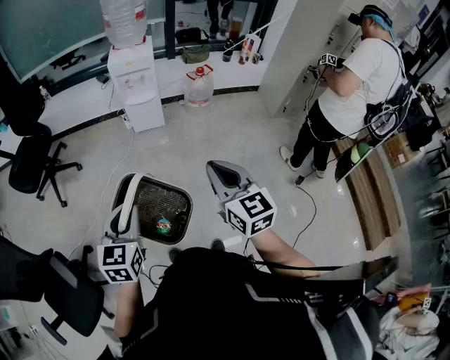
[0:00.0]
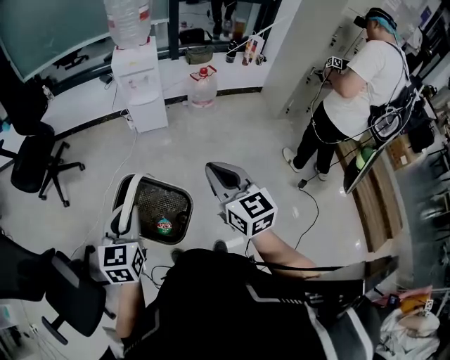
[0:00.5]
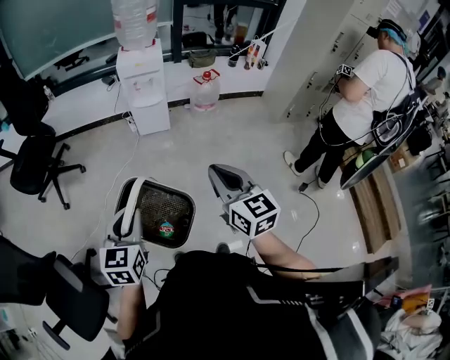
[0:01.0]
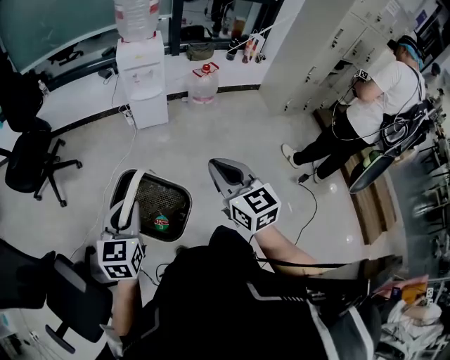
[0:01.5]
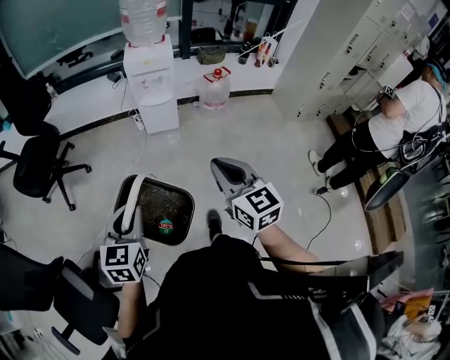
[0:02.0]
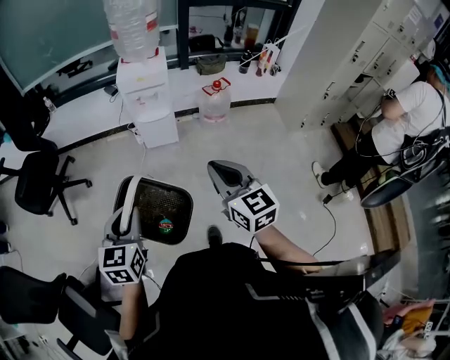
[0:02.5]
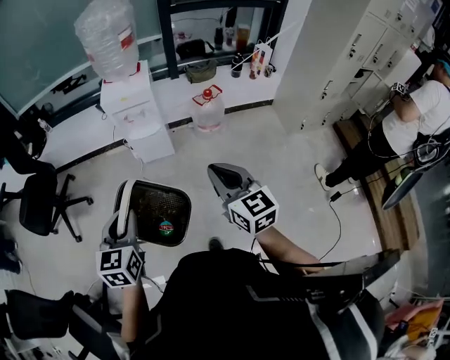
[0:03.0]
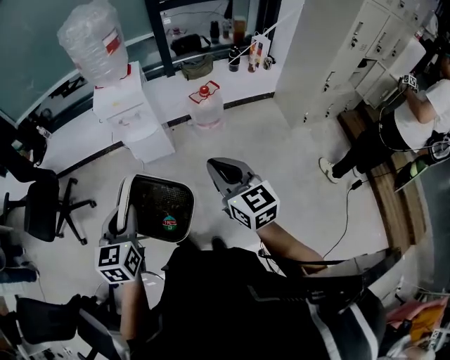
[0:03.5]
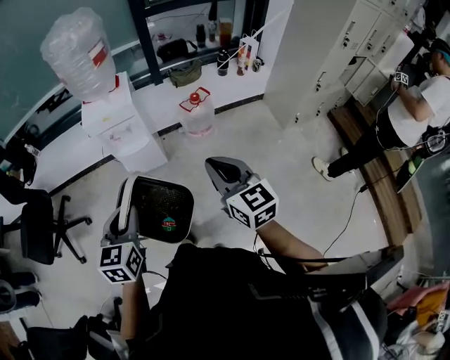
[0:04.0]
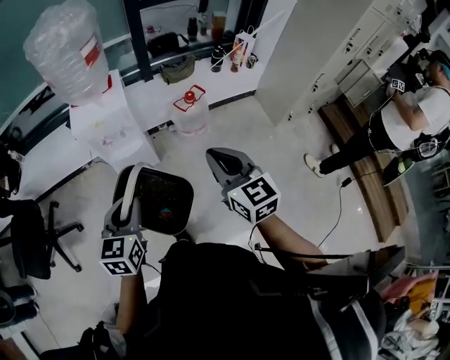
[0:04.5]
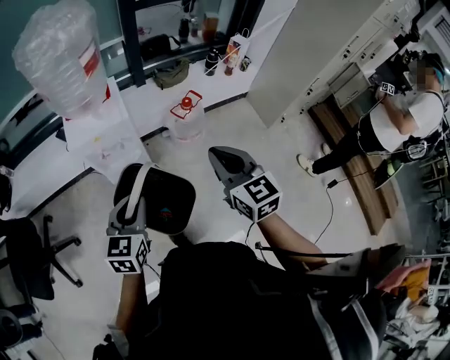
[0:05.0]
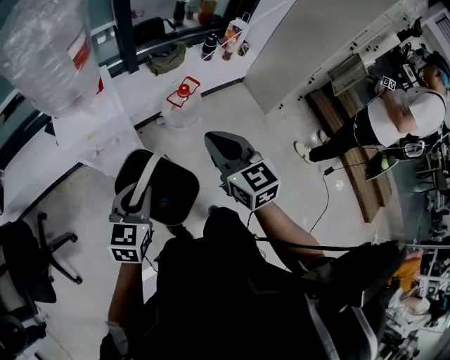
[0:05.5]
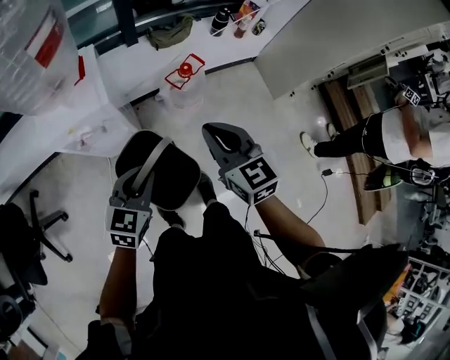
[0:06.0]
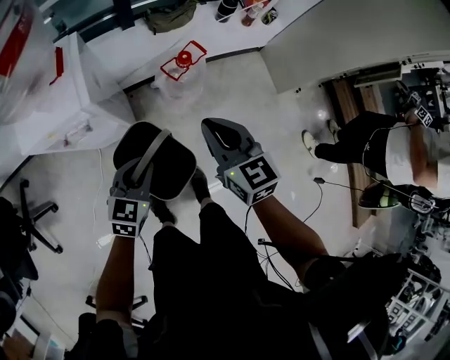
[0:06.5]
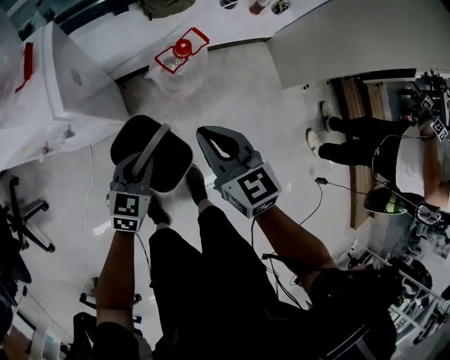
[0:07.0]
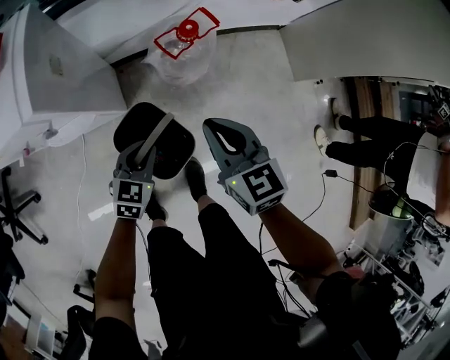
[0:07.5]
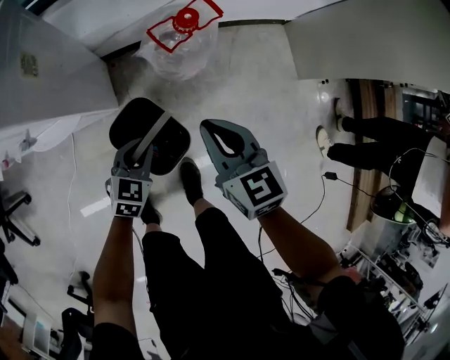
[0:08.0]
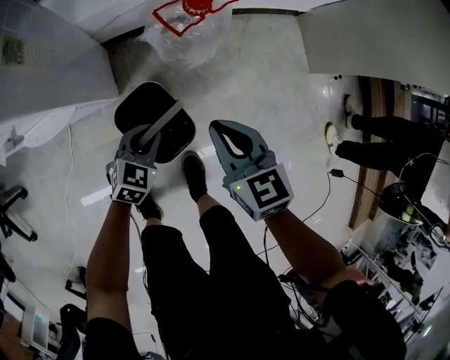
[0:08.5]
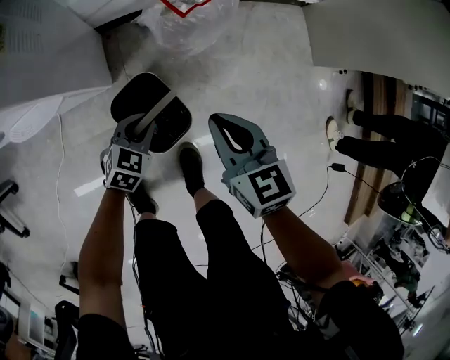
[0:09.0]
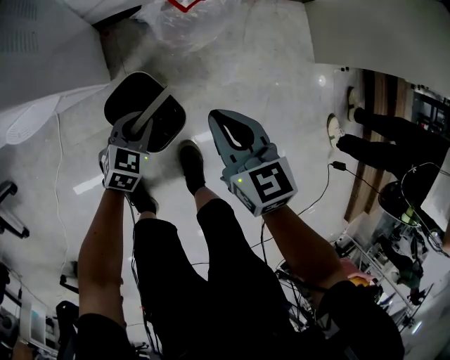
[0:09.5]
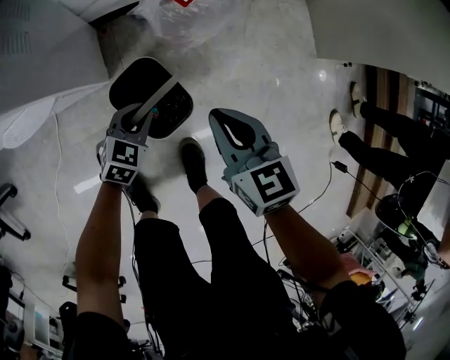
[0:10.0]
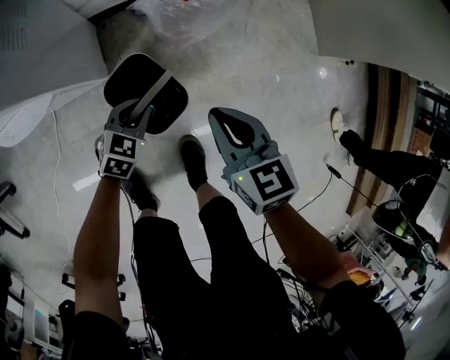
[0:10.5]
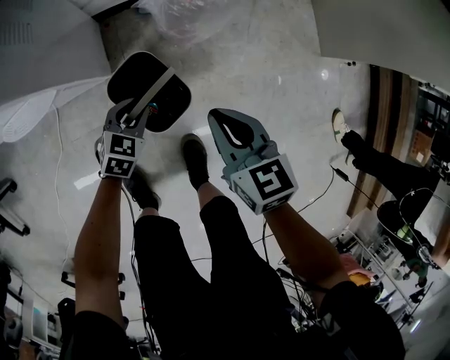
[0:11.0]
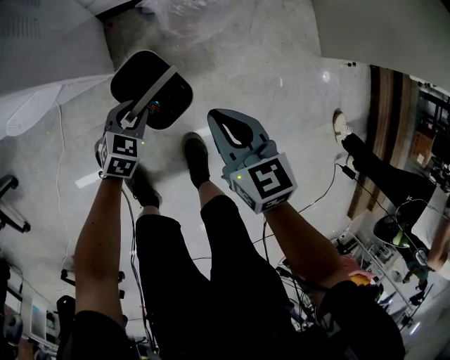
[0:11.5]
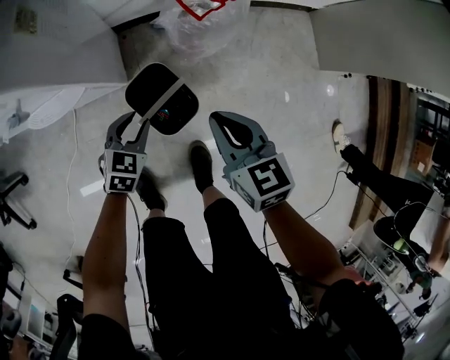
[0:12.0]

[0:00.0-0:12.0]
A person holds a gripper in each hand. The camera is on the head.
0:00.0 to 0:02.0: The right gripper goes approximately 10 cm forward and to the left; the left gripper is displaced to the left and forward by roughly 10 cm.
0:02.0 to 0:04.0: The grippers both shift forward and to the right by approximately 35 cm.
0:04.0 to 0:06.0: The left gripper is displaced forward and downward by roughly 35 cm, and swivels about 30 degrees. Meanwhile the right gripper shifts some 30 cm forward.
0:06.0 to 0:08.0: Both grippers move downward, about 35 cm.
0:08.0 to 0:10.0: The two grippers go roughly 15 cm downward.
0:10.0 to 0:12.0: The left gripper shifts roughly 10 cm upward and to the left. Meanwhile the right gripper travels upward by some 5 cm.

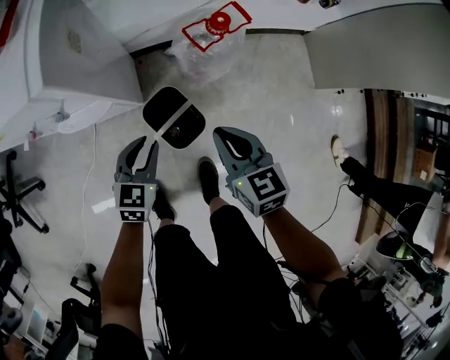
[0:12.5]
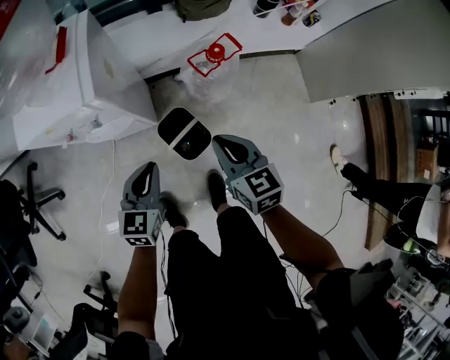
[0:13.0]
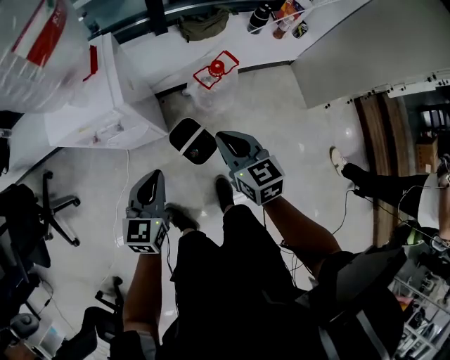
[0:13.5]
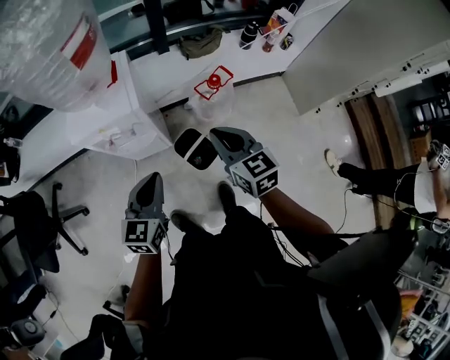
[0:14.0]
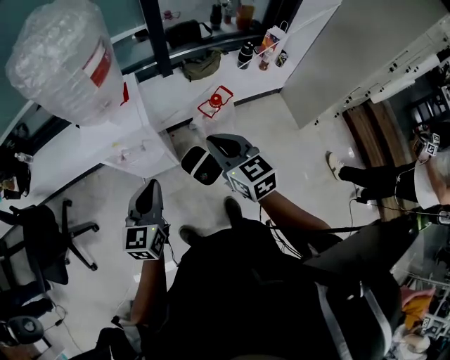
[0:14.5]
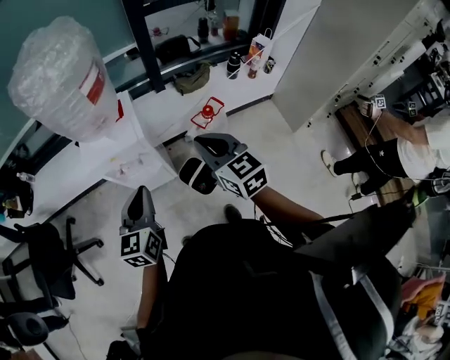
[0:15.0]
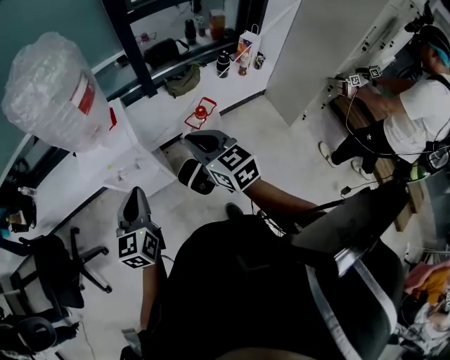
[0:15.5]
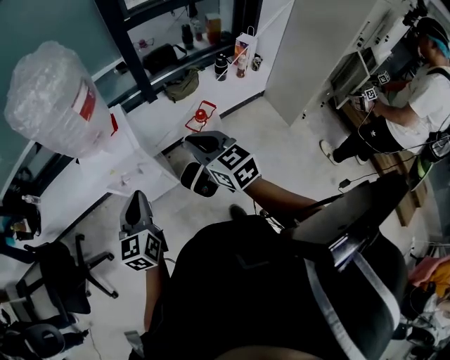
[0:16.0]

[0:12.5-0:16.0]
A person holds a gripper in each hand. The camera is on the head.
0:12.5 to 0:14.5: Both grippers move upward, some 40 cm. The left gripper swivels roughly 20 degrees, and closes.
0:14.5 to 0:16.0: The grippers stay close to where they were, moving slightly.

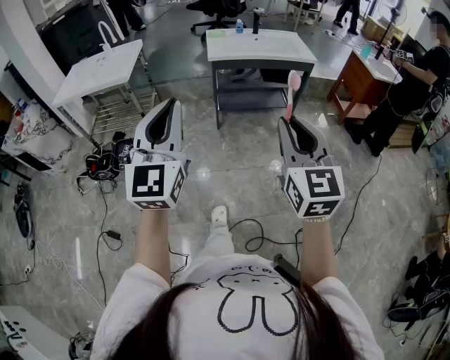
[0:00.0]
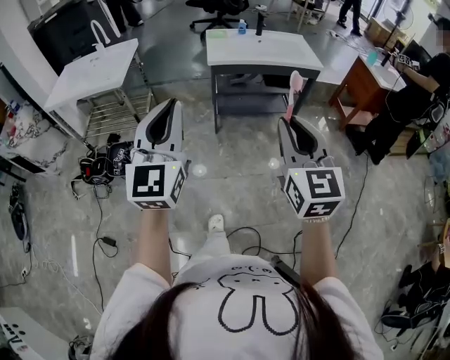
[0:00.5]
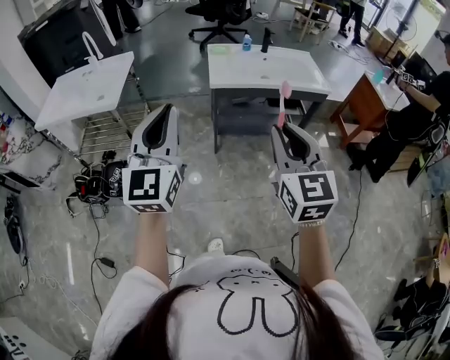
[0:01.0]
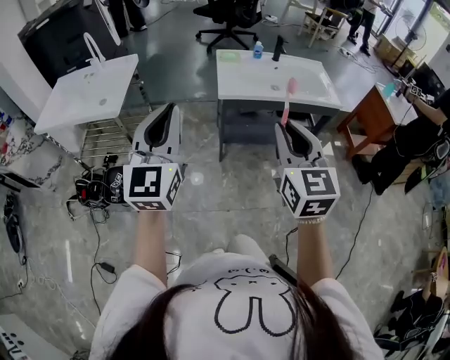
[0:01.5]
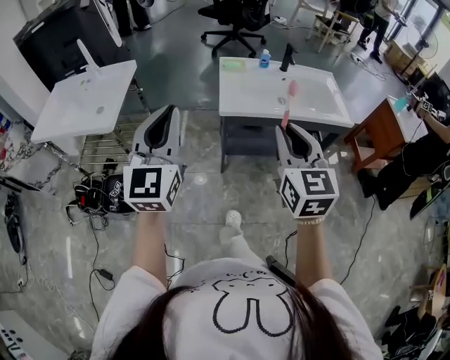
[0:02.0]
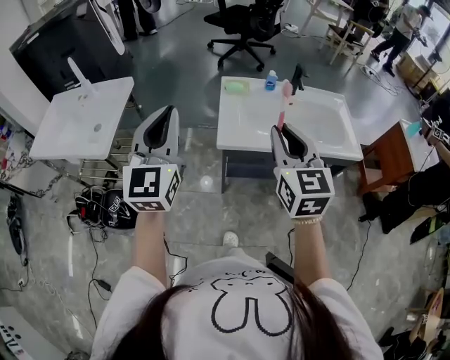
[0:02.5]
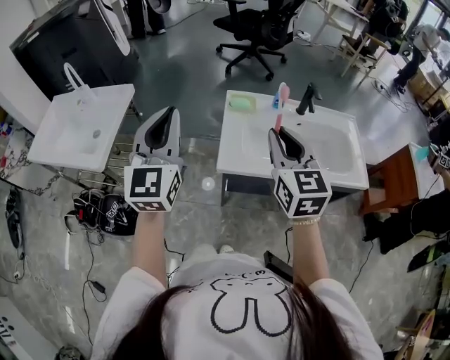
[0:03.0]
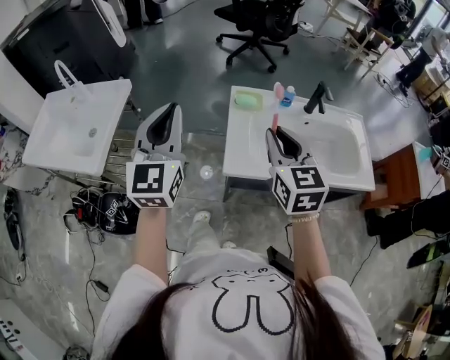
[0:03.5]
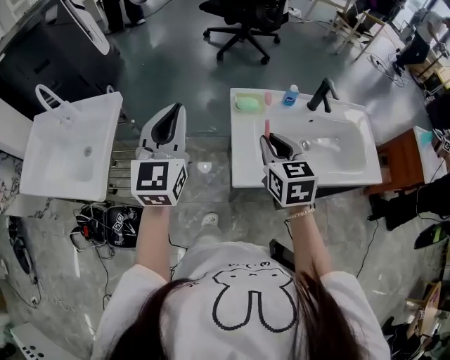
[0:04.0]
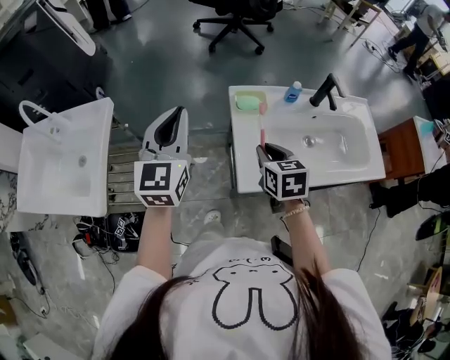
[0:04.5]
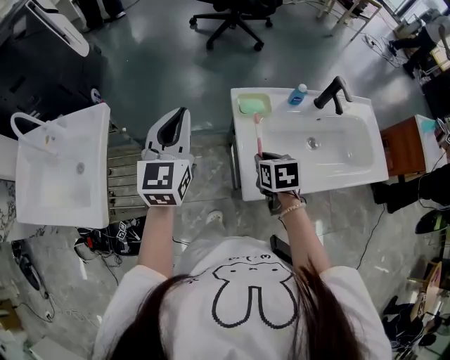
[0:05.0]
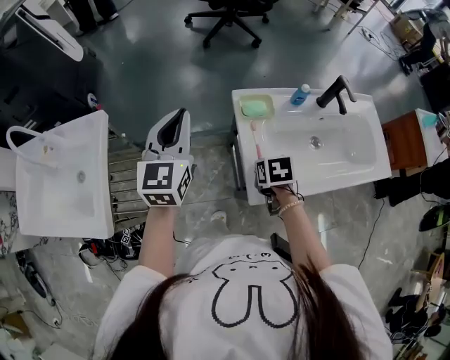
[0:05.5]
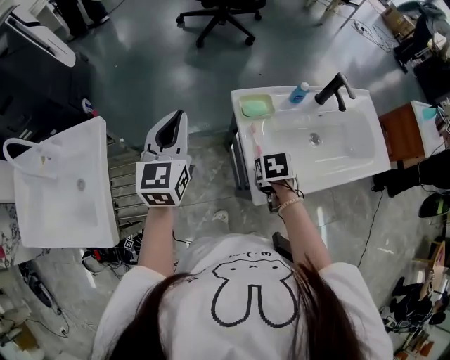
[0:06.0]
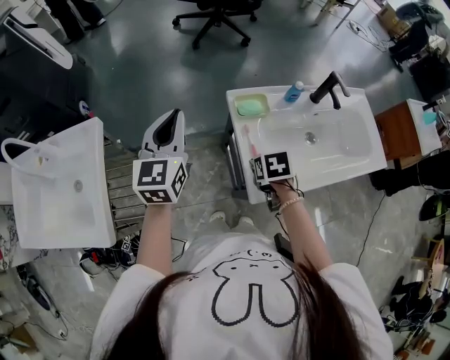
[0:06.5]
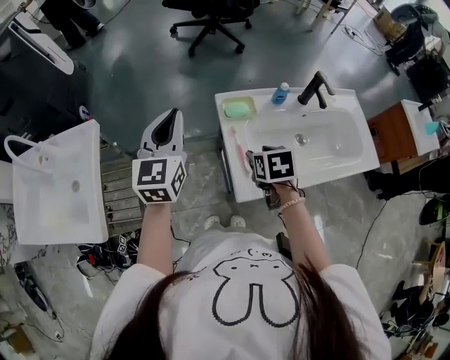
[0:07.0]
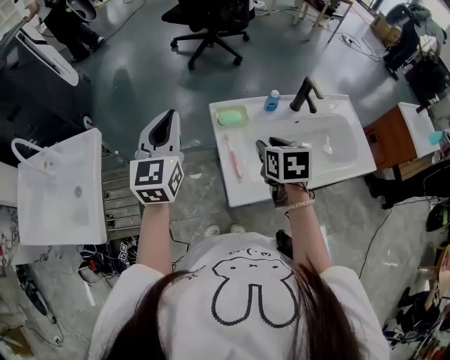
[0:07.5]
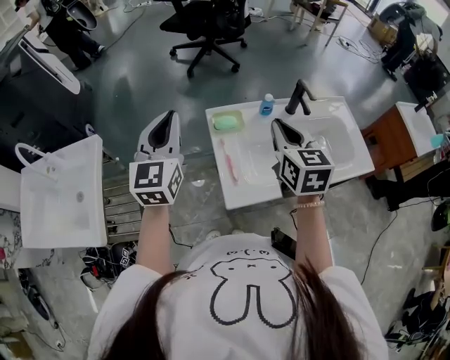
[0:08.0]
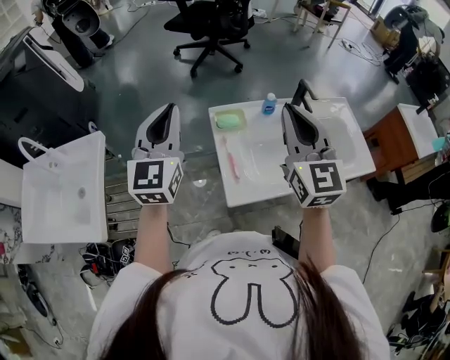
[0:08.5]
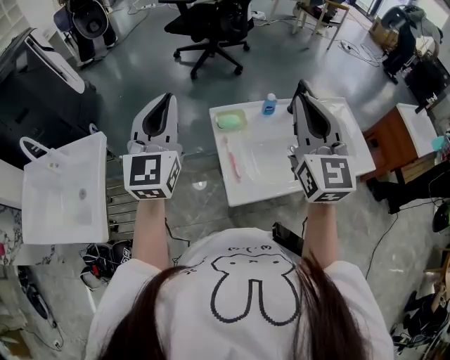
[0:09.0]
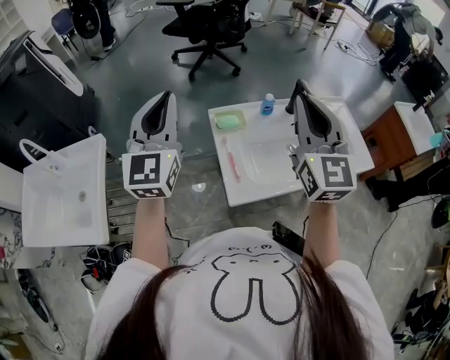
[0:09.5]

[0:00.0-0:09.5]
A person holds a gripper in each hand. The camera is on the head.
0:00.0 to 0:02.0: The pair of grippers is taken forward, approximately 50 cm.
0:02.0 to 0:04.0: The grippers both shift forward by approximately 40 cm. The right gripper turns by some 20 degrees.
0:04.0 to 0:05.5: The right gripper shifts some 20 cm downward, and tilts its fingers about 40 degrees downward; the left gripper travels forward and downward by approximately 15 cm.
0:05.5 to 0:07.5: The right gripper travels upward and to the right by roughly 15 cm, swivels about 20 degrees, and opens; the left gripper travels to the right and upward by about 5 cm.
0:07.5 to 0:09.5: The left gripper shifts roughly 10 cm upward. Meanwhile the right gripper shifts some 25 cm upward, tips its fingers upward by approximately 50 degrees, and closes.

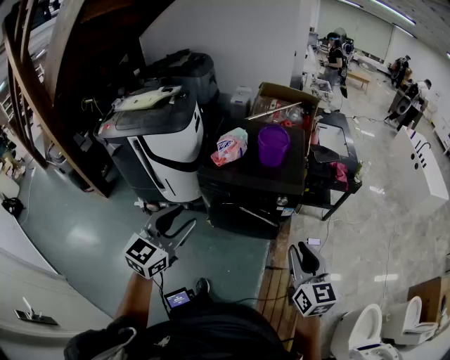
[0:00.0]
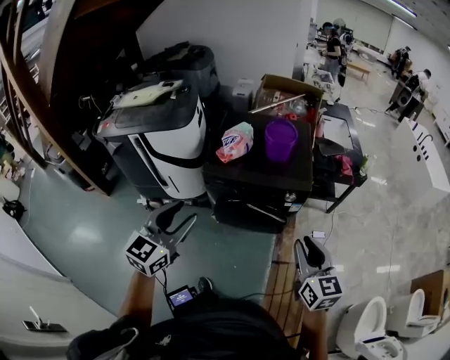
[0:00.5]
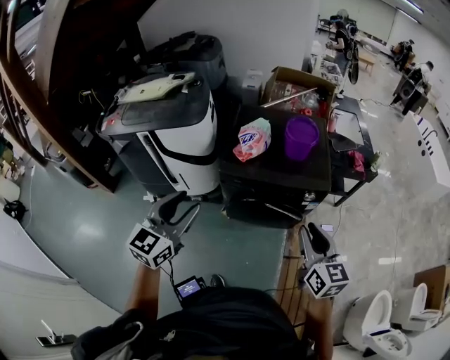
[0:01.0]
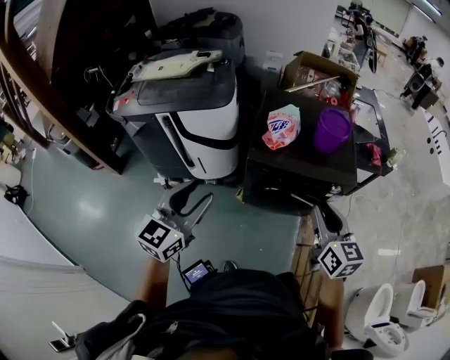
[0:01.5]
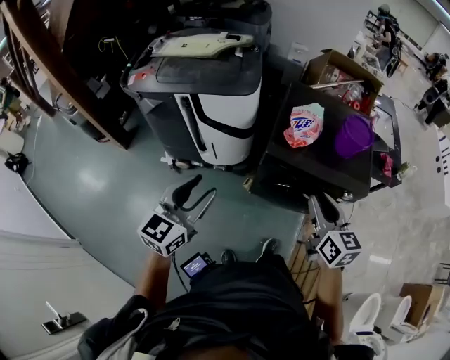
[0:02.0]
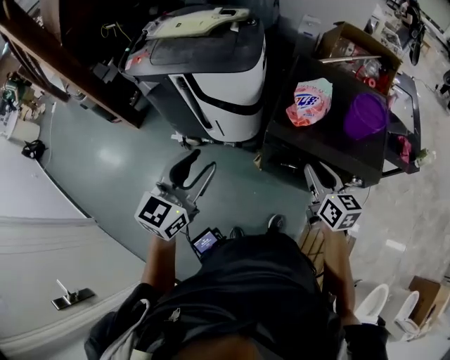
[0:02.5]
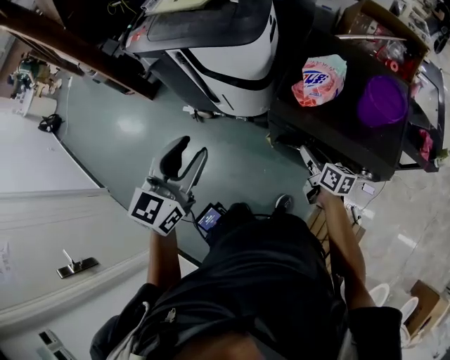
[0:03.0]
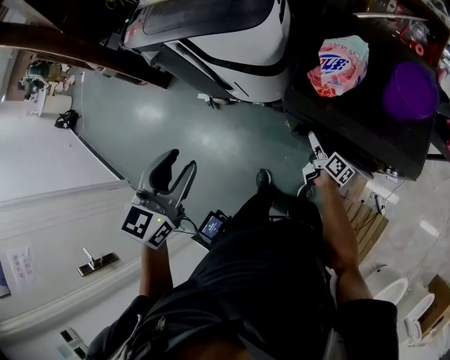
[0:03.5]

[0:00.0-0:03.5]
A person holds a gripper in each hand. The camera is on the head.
0:00.0 to 0:02.0: The left gripper shifts approximately 30 cm to the left. The right gripper moves to the left and forward, some 40 cm.
0:02.0 to 0:03.5: The left gripper goes roughly 5 cm to the right, and turns by roughly 30 degrees. Meanwhile the right gripper goes some 40 cm downward and forward, rotates around the line of its fingers by about 50 degrees, clockwise from behind, and opens.
